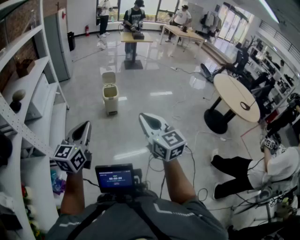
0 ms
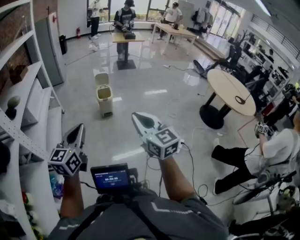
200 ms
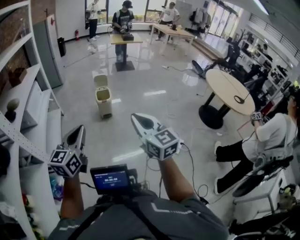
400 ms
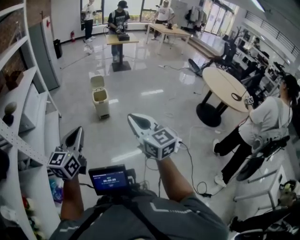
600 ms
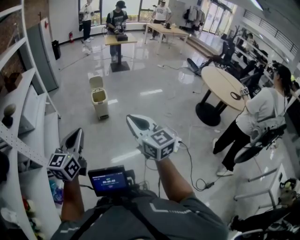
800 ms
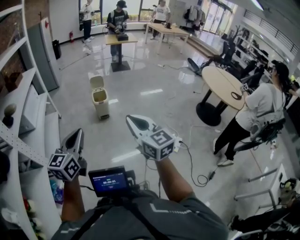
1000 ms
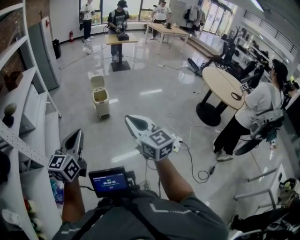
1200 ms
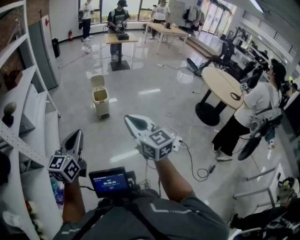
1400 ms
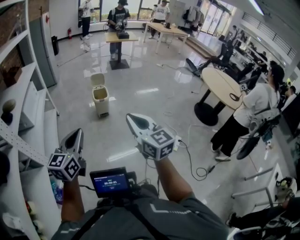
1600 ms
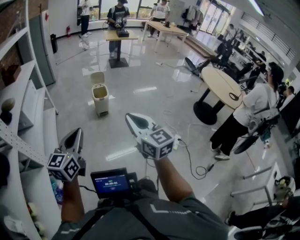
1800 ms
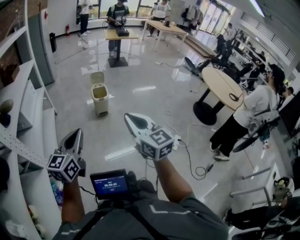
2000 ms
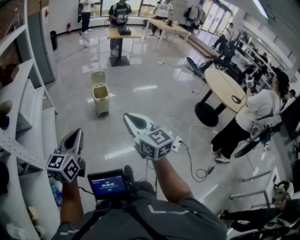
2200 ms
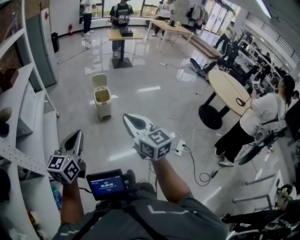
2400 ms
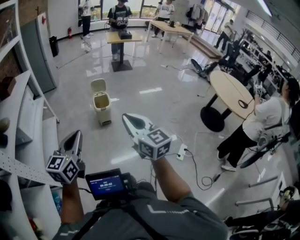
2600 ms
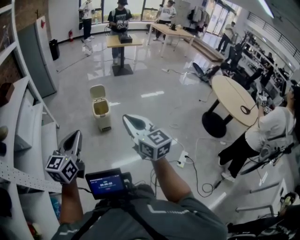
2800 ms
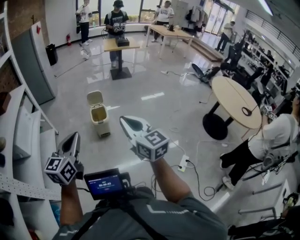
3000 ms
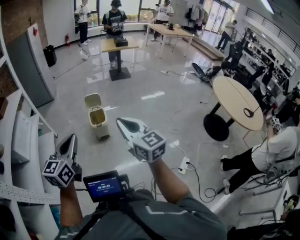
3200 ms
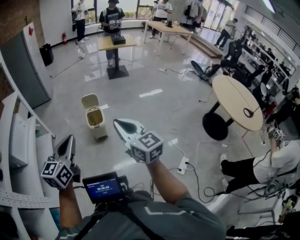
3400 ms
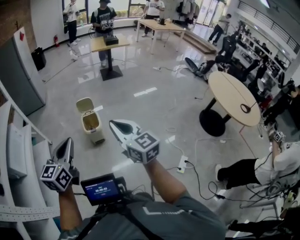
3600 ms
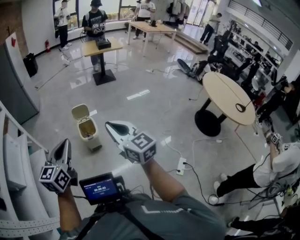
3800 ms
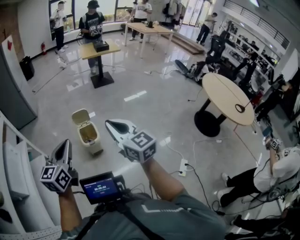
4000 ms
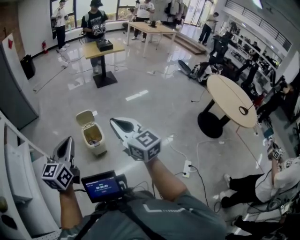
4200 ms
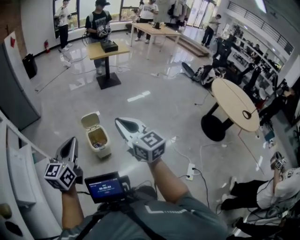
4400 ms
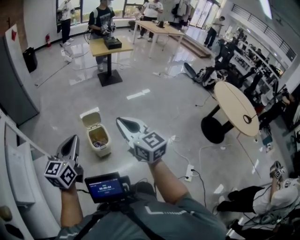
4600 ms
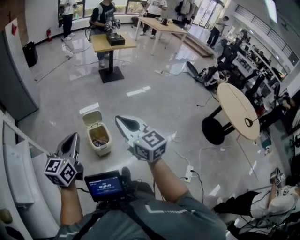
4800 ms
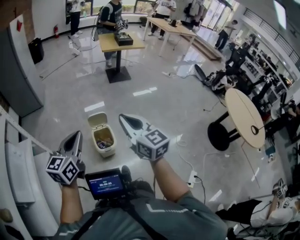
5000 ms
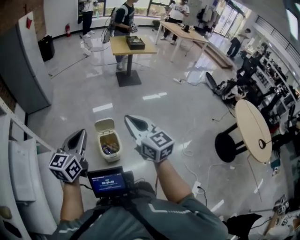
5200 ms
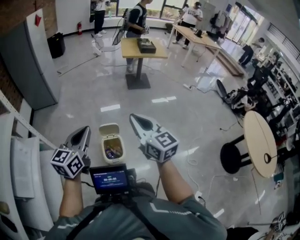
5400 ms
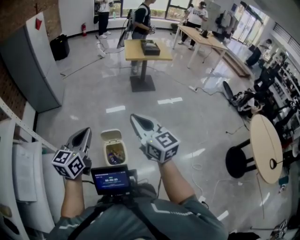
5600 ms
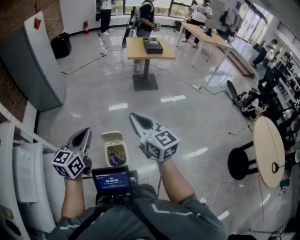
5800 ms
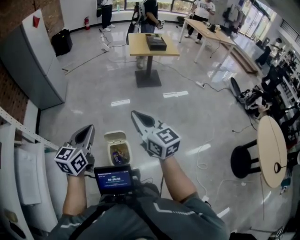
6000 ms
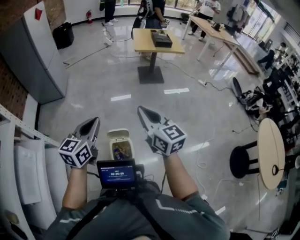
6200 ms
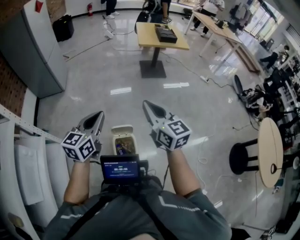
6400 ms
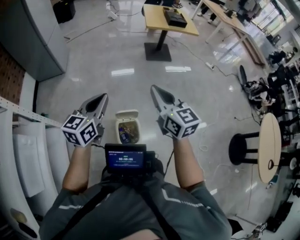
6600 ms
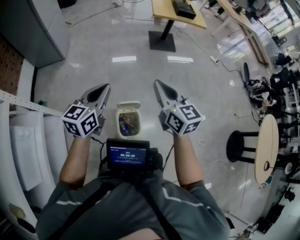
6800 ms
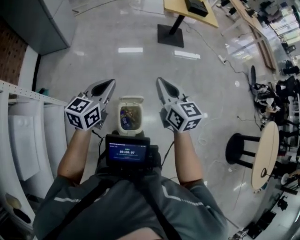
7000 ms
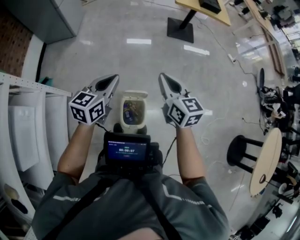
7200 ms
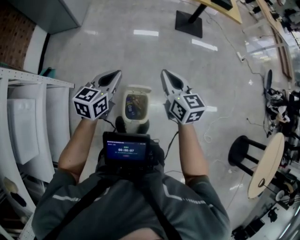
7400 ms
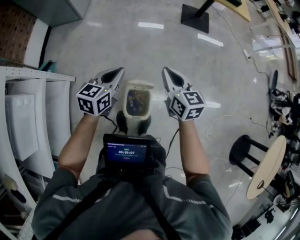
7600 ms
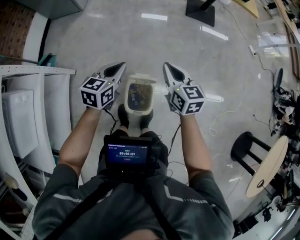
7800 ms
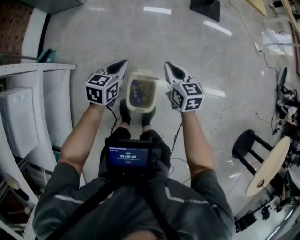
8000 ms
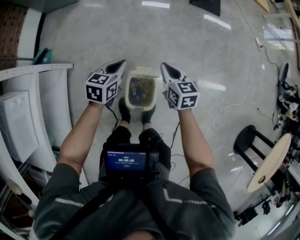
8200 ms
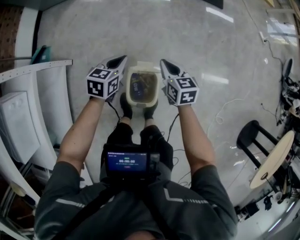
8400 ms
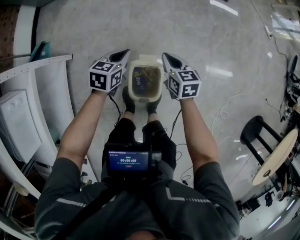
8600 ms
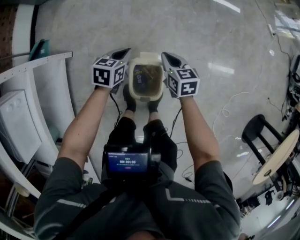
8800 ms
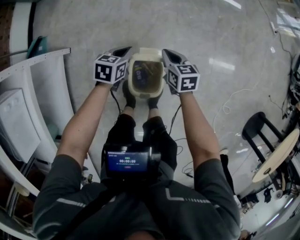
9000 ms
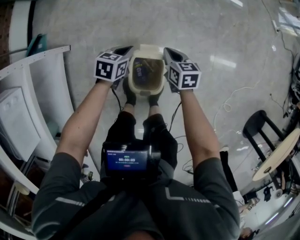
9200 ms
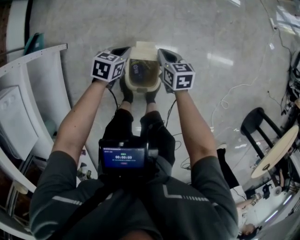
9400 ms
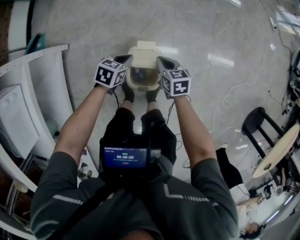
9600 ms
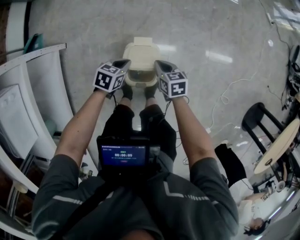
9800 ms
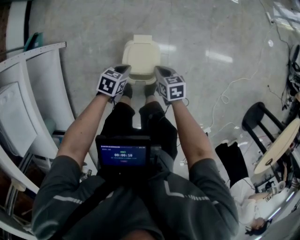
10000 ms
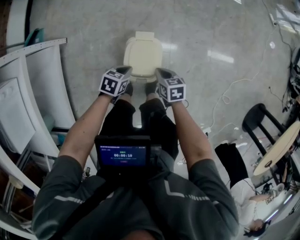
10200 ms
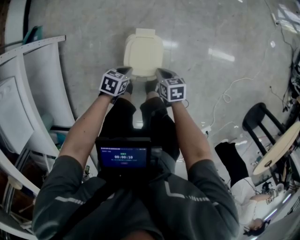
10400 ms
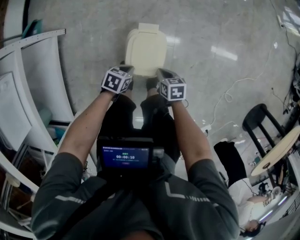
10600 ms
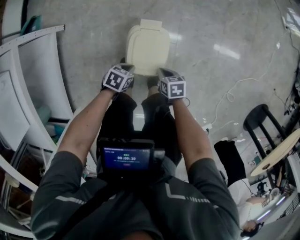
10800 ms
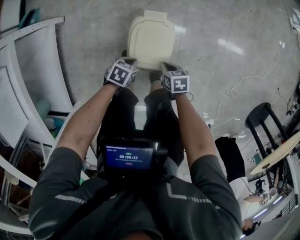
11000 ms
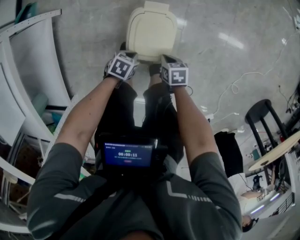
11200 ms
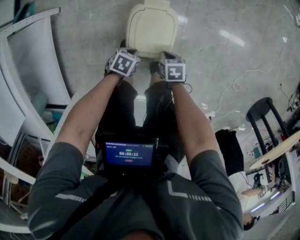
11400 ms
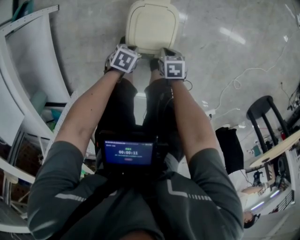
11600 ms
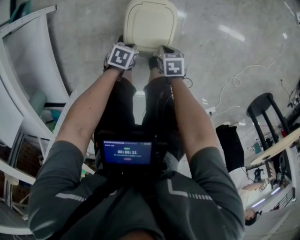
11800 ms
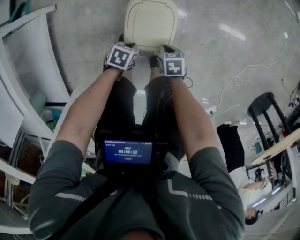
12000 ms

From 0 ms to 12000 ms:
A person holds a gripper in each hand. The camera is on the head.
From 0 ms to 1600 ms: The grippers both shift to the left by some 5 cm.
From 1600 ms to 3000 ms: The grippers both shift forward by approximately 25 cm.
From 3000 ms to 4400 ms: Both grippers move forward, approximately 30 cm.
From 4400 ms to 6000 ms: Both grippers travel together forward, about 35 cm.
From 6000 ms to 7600 ms: Both grippers move downward and forward, some 25 cm. The right gripper swivels approximately 20 degrees.
From 7600 ms to 9000 ms: Both grippers travel together downward, approximately 30 cm. The left gripper swivels approximately 30 degrees; the right gripper turns by about 20 degrees.
From 9000 ms to 10400 ms: The two grippers go approximately 20 cm backward and downward.
From 10400 ms to 12000 ms: Both grippers travel together downward, some 10 cm.

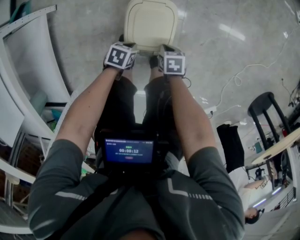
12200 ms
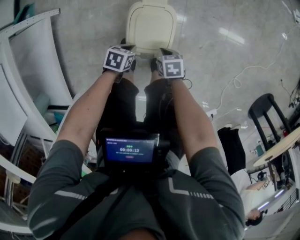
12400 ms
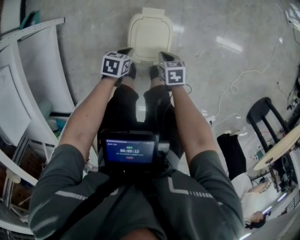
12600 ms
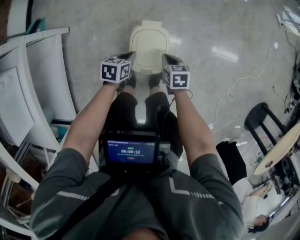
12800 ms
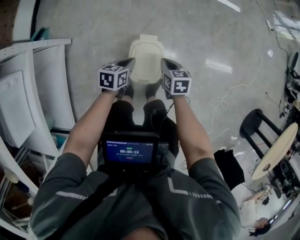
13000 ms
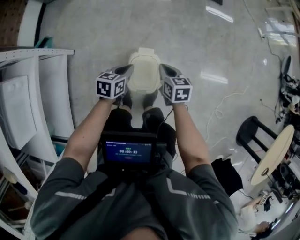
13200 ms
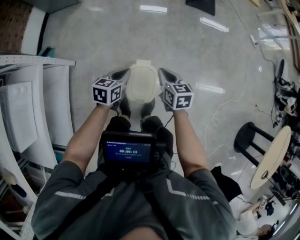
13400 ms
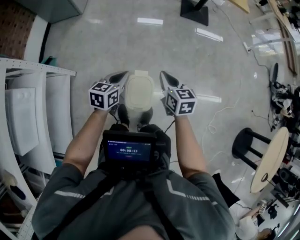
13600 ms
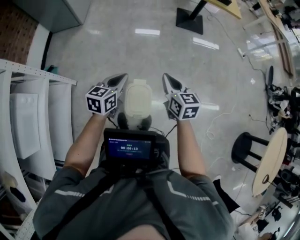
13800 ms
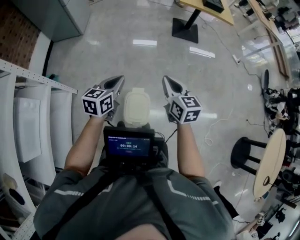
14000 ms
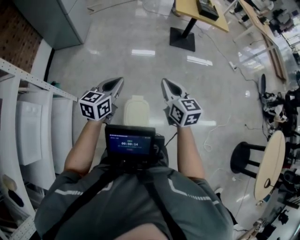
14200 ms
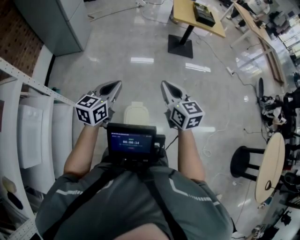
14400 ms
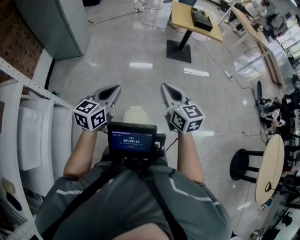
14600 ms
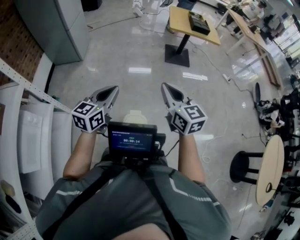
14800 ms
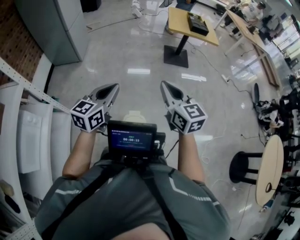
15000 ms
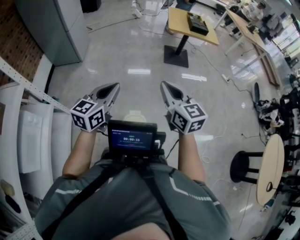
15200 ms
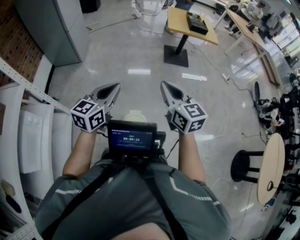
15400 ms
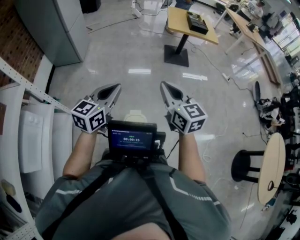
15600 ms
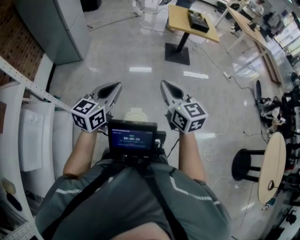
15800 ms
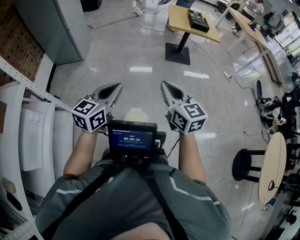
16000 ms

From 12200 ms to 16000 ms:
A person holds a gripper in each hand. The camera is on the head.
From 12200 ms to 13400 ms: Both grippers move upward, some 35 cm. The left gripper swivels about 40 degrees. Meanwhile the right gripper points its fingers approximately 40 degrees further upward.
From 13400 ms to 14800 ms: Both grippers travel together upward, some 30 cm. The left gripper rotates some 30 degrees. The right gripper changes its angle by some 30 degrees.
From 14800 ms to 16000 ms: The grippers move only a little.

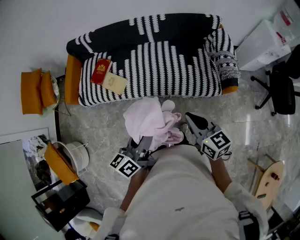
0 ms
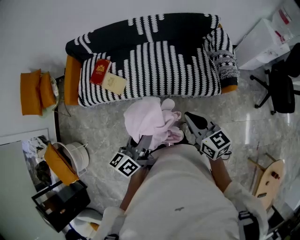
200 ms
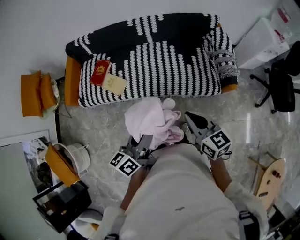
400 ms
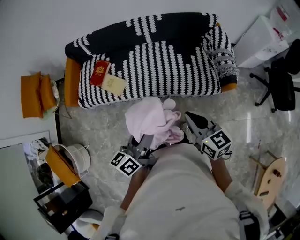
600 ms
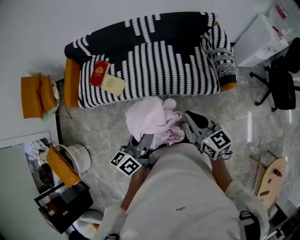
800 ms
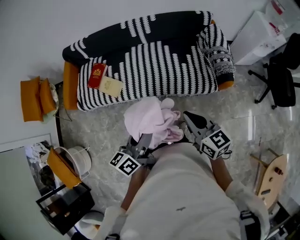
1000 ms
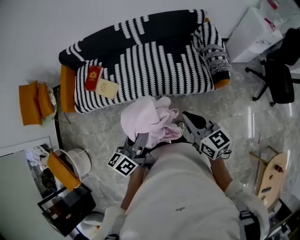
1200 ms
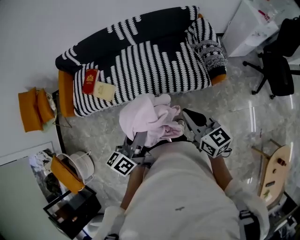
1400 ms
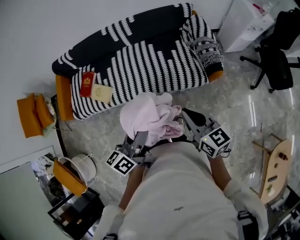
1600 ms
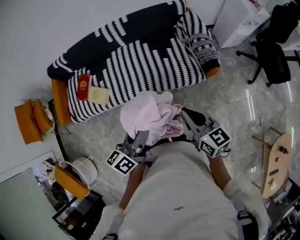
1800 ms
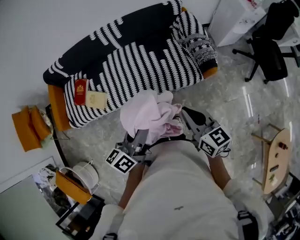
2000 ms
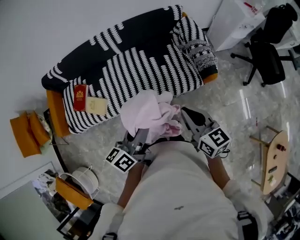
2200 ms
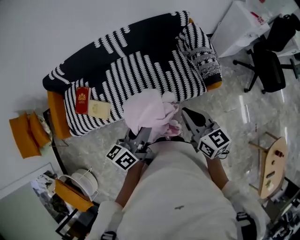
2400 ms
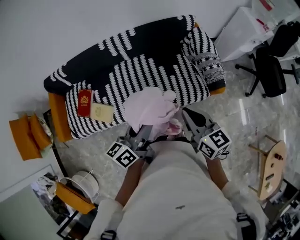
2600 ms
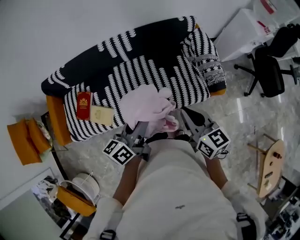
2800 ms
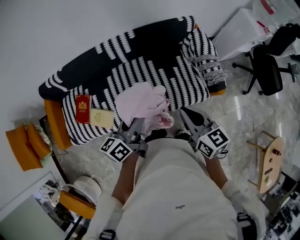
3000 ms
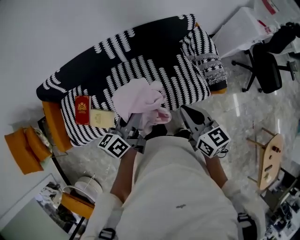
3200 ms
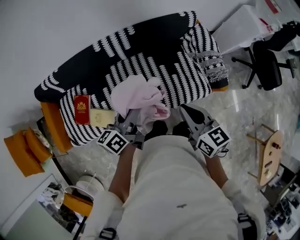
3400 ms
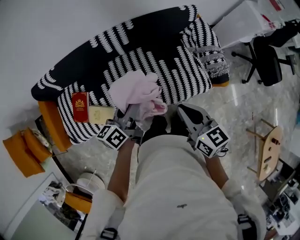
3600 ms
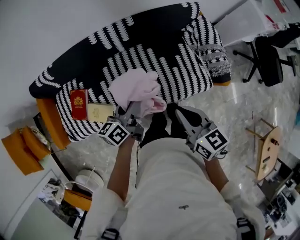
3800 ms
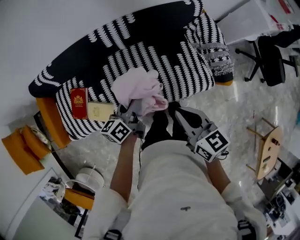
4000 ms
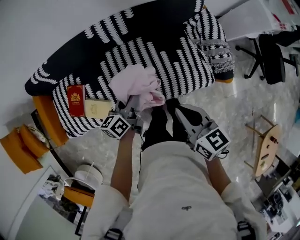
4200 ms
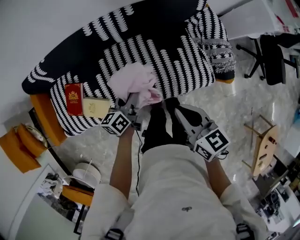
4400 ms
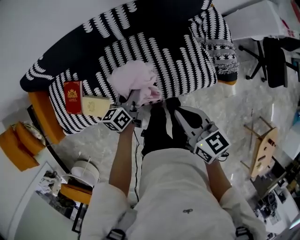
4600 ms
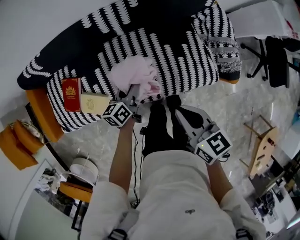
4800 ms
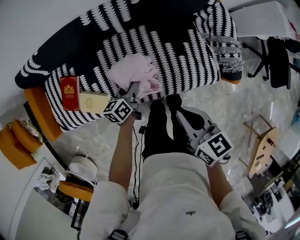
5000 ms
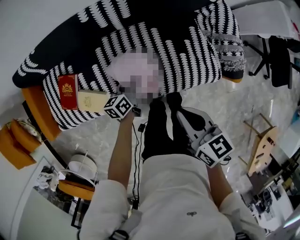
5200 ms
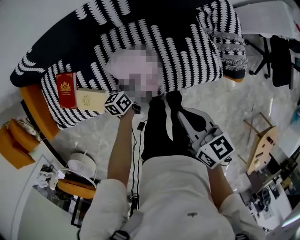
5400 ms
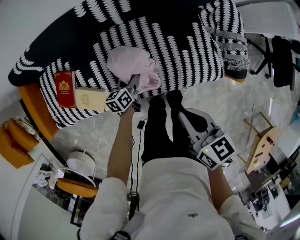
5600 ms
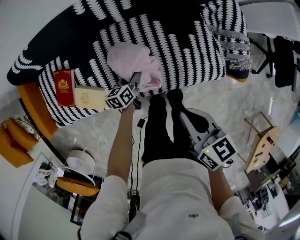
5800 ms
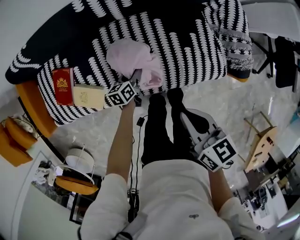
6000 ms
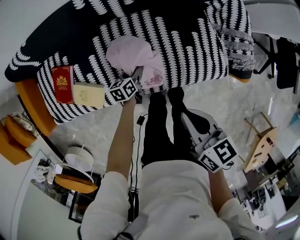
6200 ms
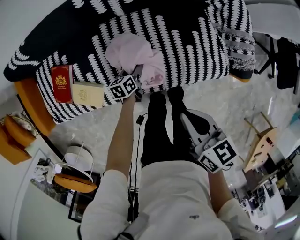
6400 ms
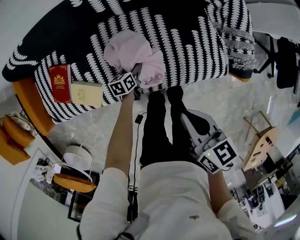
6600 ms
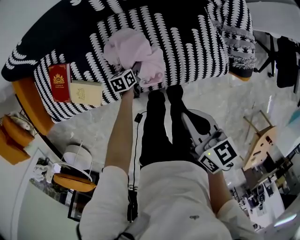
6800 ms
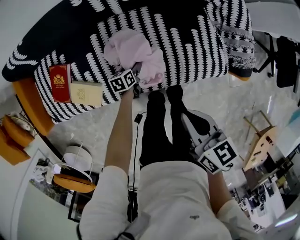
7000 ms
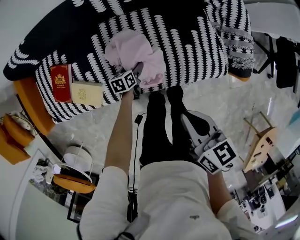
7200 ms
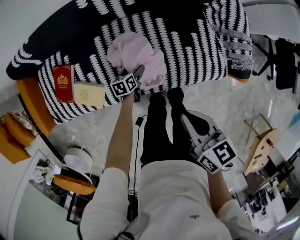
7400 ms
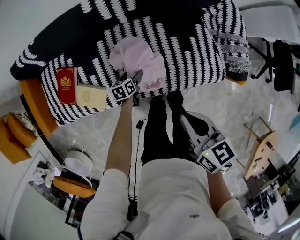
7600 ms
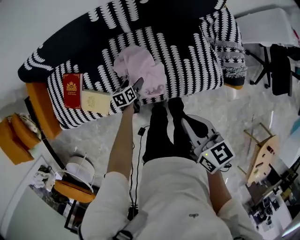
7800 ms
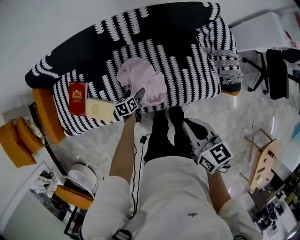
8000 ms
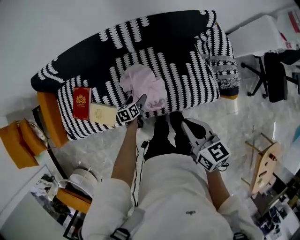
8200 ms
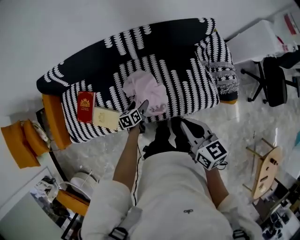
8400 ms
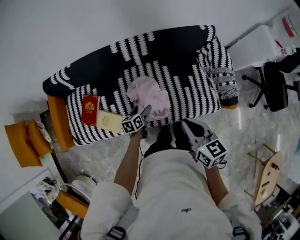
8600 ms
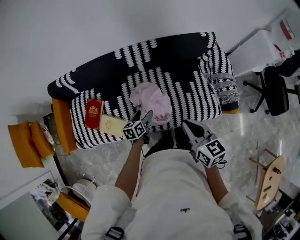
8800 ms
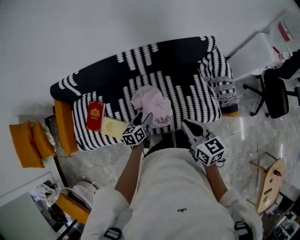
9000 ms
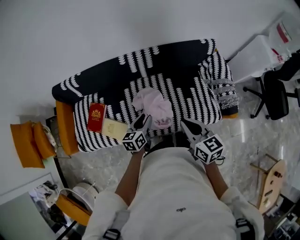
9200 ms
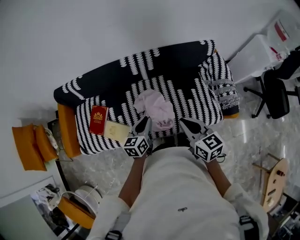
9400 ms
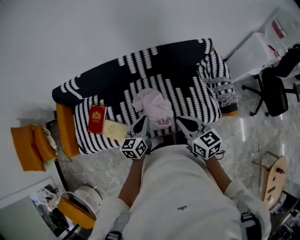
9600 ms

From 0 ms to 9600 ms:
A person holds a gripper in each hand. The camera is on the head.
From 0 ms to 1600 ms: The grippers both shift to the right by some 10 cm.
From 1600 ms to 3200 ms: Both grippers travel together forward and to the left, roughly 30 cm.
From 3200 ms to 4800 ms: The left gripper moves downward and forward, approximately 25 cm, while the right gripper travels downward and to the left by roughly 10 cm.
From 4800 ms to 6400 ms: The left gripper heads downward, covering approximately 20 cm; the right gripper moves downward, roughly 10 cm.
From 6400 ms to 8000 ms: The two grippers go approximately 10 cm upward. The left gripper opens.
From 8000 ms to 9600 ms: The left gripper heads upward, covering roughly 30 cm, turns by about 30 degrees, and closes up. Meanwhile the right gripper shifts about 5 cm upward.
